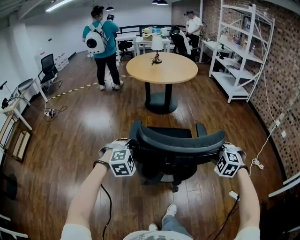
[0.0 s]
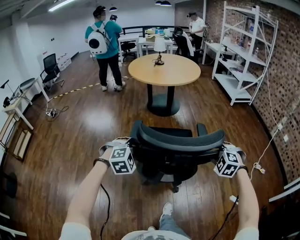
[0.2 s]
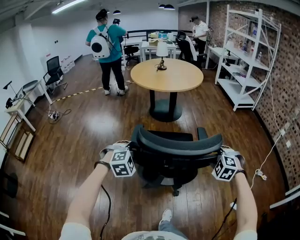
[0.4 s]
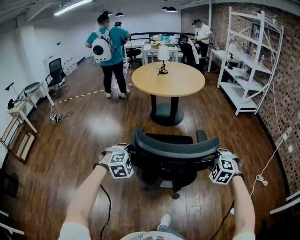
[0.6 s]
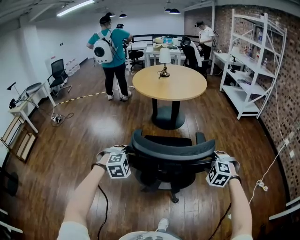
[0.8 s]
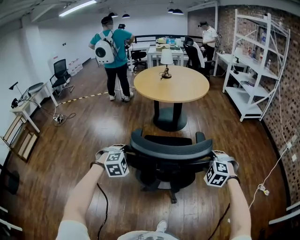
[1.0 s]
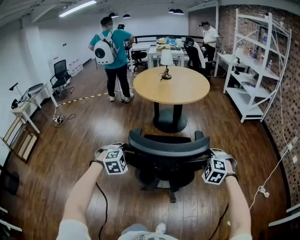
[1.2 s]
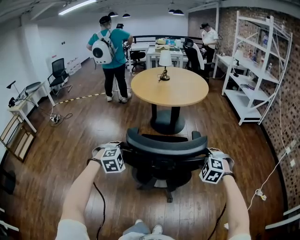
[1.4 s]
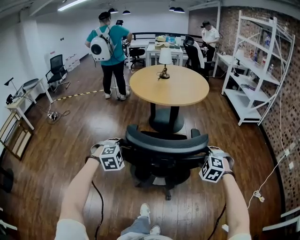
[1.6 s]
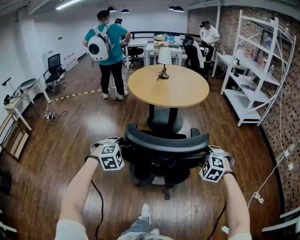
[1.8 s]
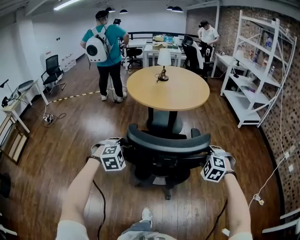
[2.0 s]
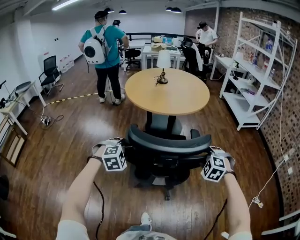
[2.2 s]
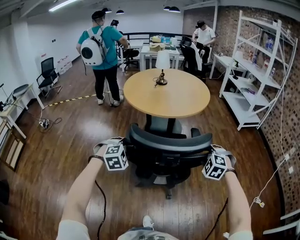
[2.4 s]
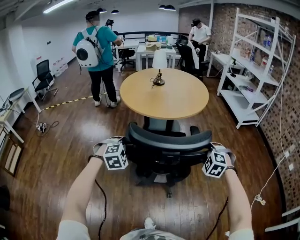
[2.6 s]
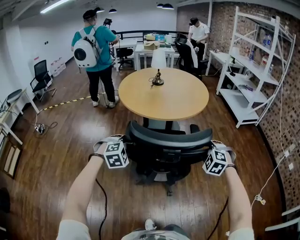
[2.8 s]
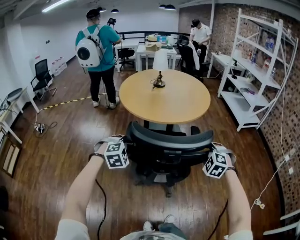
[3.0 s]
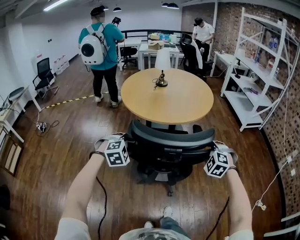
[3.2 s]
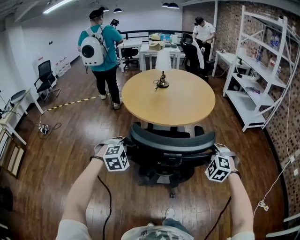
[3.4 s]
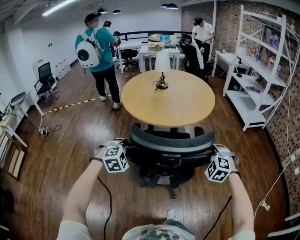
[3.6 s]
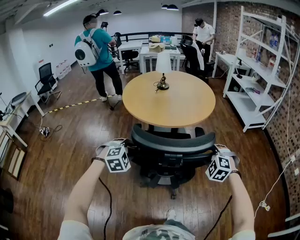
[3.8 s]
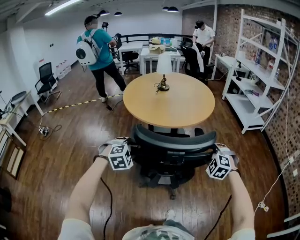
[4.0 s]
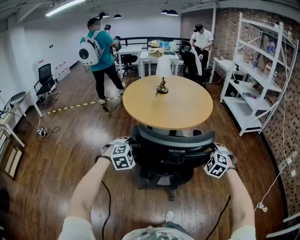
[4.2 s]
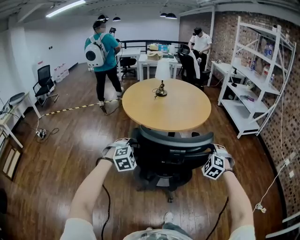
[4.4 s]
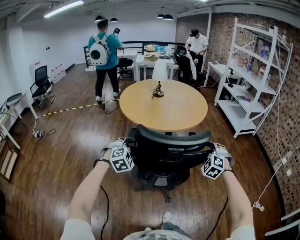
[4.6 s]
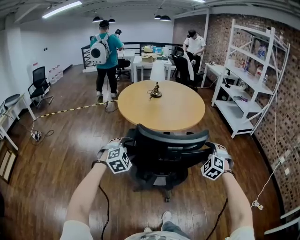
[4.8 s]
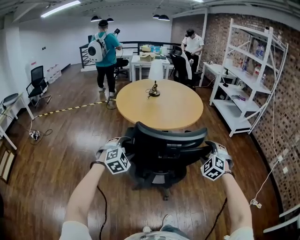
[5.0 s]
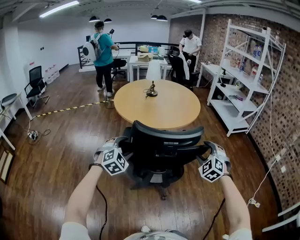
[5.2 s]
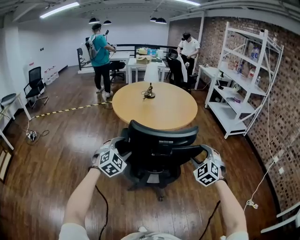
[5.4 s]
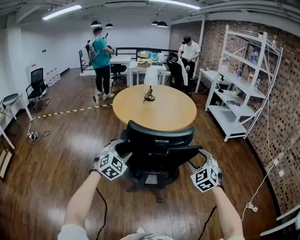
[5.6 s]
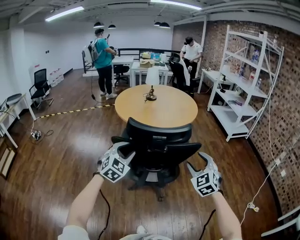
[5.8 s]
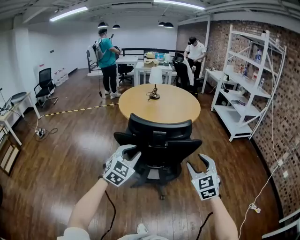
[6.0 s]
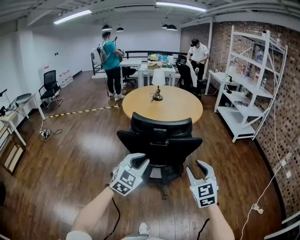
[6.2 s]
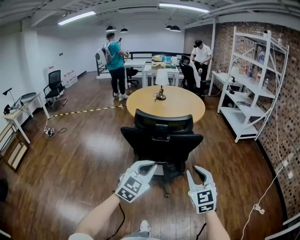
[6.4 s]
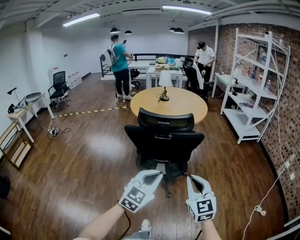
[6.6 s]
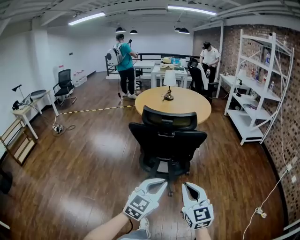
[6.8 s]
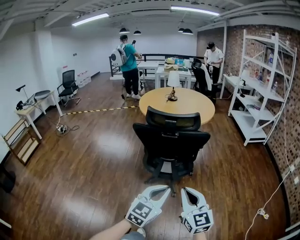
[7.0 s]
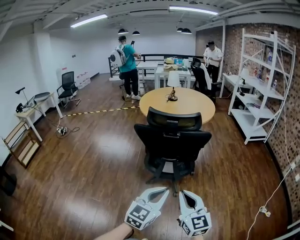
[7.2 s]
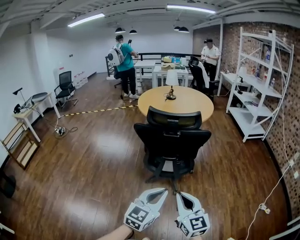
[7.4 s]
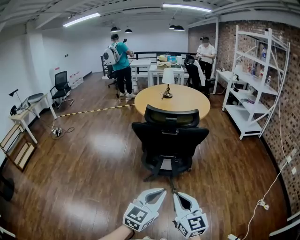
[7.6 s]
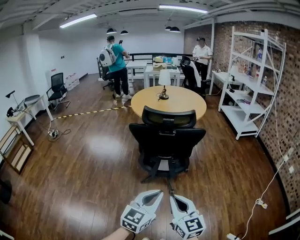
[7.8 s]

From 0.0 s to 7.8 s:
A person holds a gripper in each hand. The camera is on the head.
From 0.0 s to 1.6 s: The two grippers go roughly 25 cm forward.
From 1.6 s to 3.2 s: The two grippers go about 30 cm forward.
From 3.2 s to 4.6 s: The grippers stay close to where they were, moving slightly.
From 4.6 s to 6.2 s: The right gripper travels backward by roughly 25 cm, changes its angle by roughly 50 degrees, and closes. The left gripper goes about 25 cm backward, to the right and upward, turns by some 40 degrees, and closes up.
From 6.2 s to 7.8 s: The right gripper heads backward and to the left, covering roughly 25 cm, changes its angle by approximately 30 degrees, and closes, while the left gripper shifts about 25 cm backward, and turns by some 30 degrees.

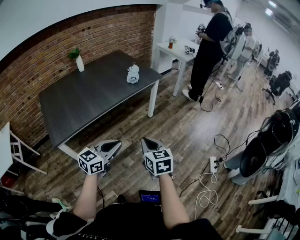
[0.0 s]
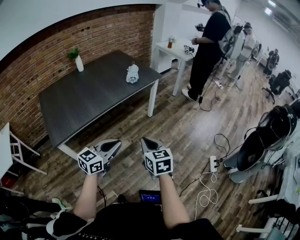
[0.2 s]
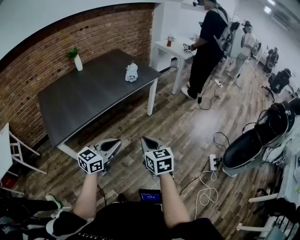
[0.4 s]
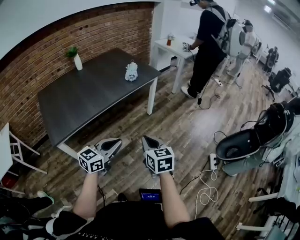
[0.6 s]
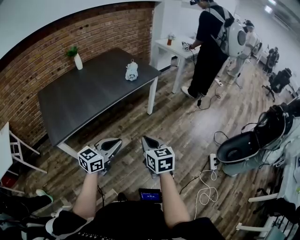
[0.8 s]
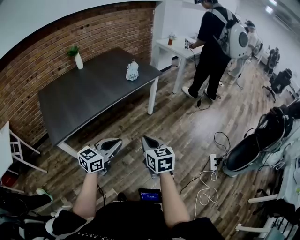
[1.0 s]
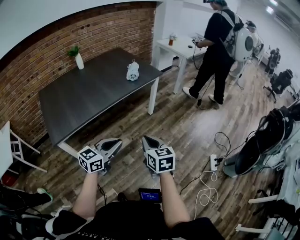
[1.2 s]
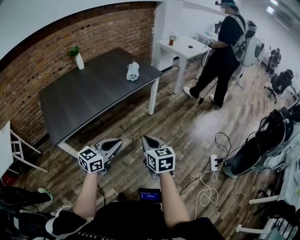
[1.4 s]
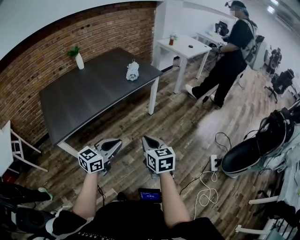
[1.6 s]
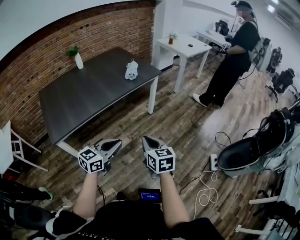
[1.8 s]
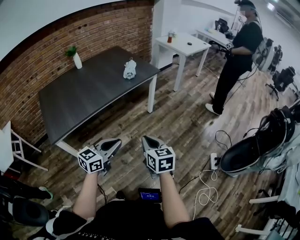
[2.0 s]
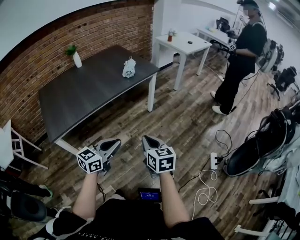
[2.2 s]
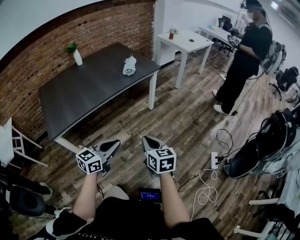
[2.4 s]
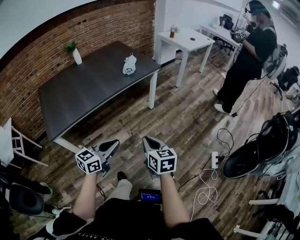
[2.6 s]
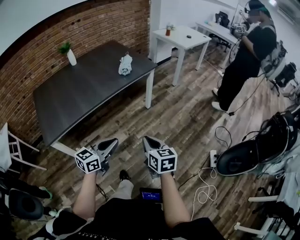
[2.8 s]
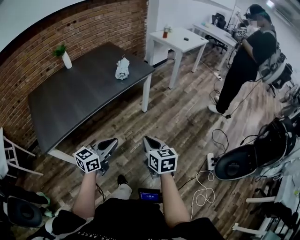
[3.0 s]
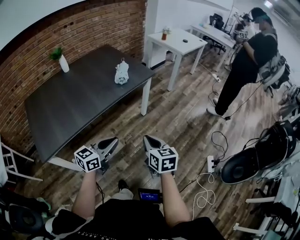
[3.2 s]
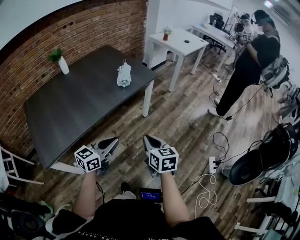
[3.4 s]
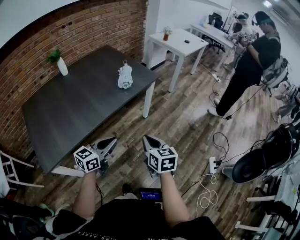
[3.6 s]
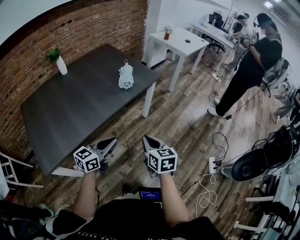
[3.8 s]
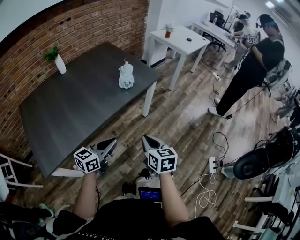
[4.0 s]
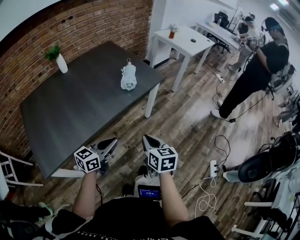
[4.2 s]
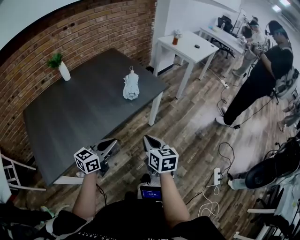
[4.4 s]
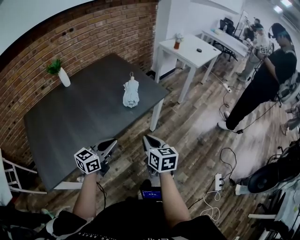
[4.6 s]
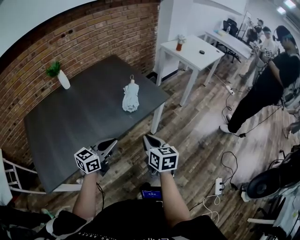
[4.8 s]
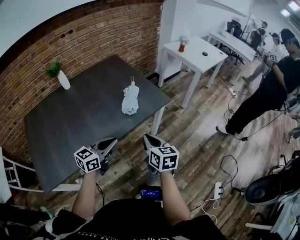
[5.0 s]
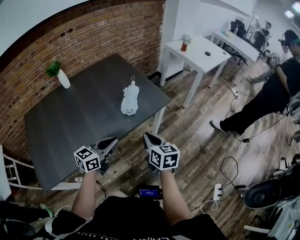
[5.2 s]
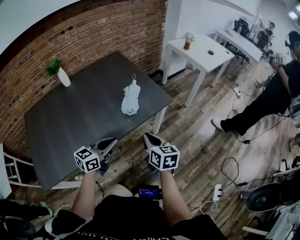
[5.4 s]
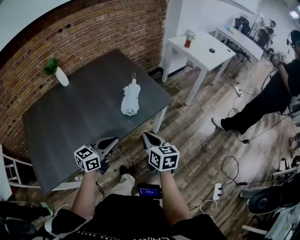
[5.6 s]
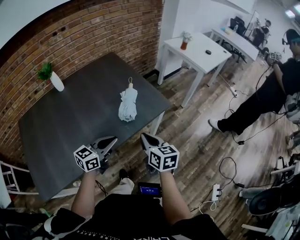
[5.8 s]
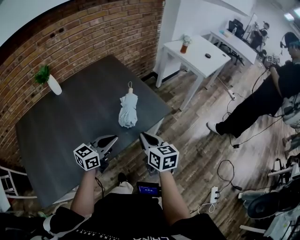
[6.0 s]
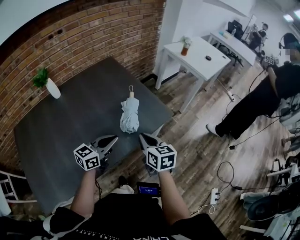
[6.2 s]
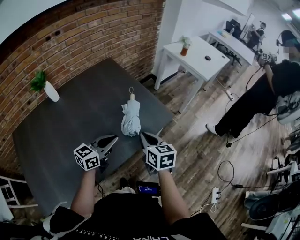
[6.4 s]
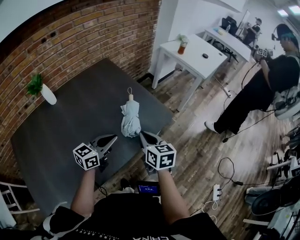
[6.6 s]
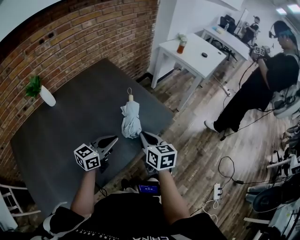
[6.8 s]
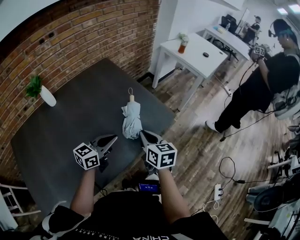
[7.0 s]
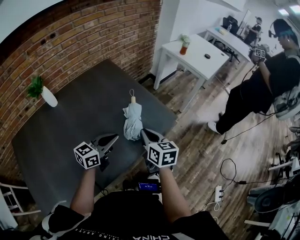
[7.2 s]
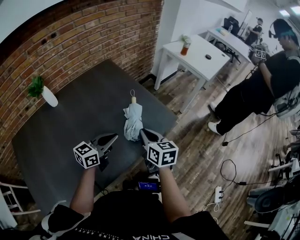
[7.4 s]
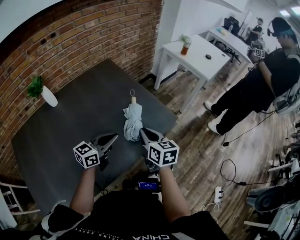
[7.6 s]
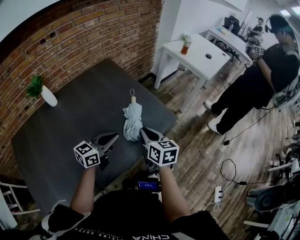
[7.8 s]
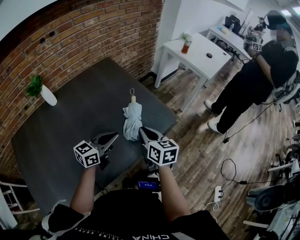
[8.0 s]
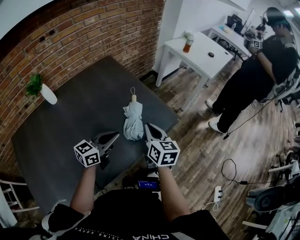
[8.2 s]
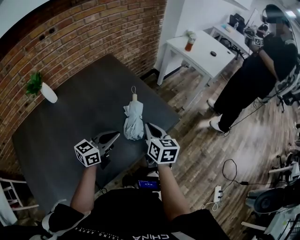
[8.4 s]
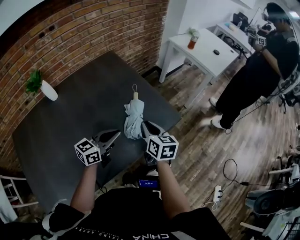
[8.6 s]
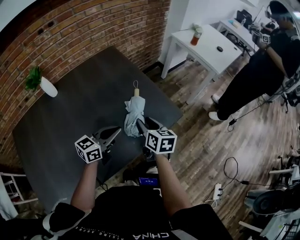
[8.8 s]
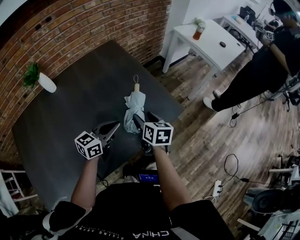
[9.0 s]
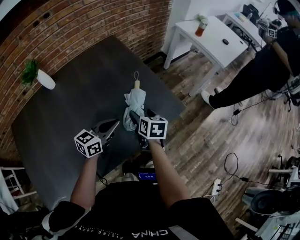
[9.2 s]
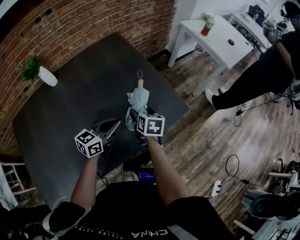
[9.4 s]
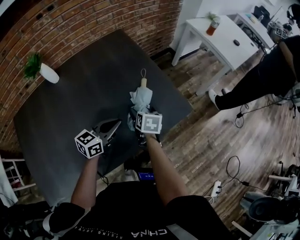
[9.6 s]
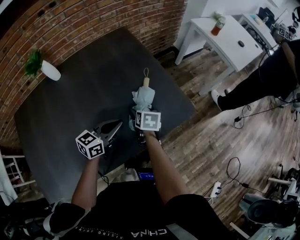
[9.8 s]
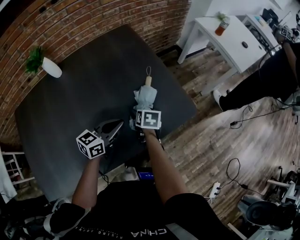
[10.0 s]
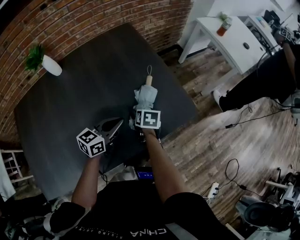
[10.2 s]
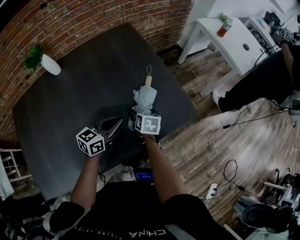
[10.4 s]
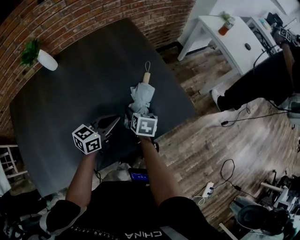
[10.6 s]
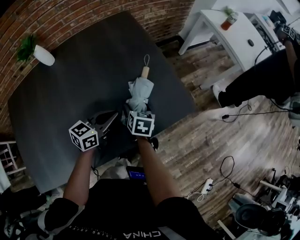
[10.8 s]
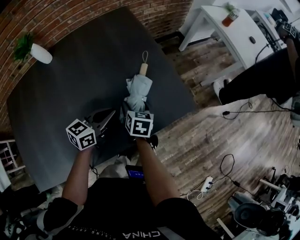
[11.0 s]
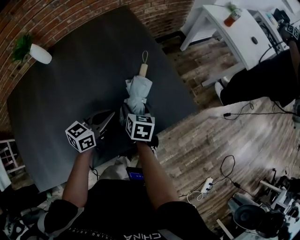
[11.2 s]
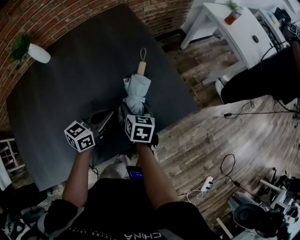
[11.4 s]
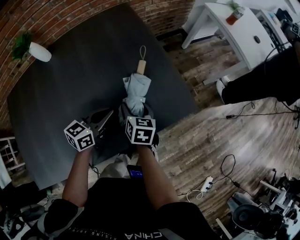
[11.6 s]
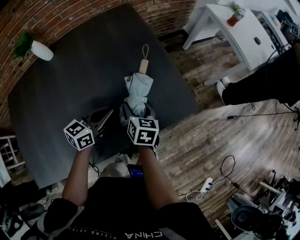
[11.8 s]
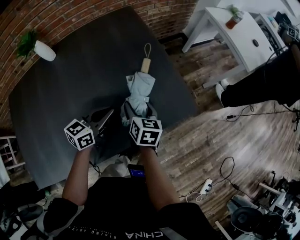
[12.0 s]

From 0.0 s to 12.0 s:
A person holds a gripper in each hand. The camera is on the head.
From 0.0 s to 1.6 s: The grippers make only small movements.
From 1.6 s to 3.0 s: The two grippers go approximately 10 cm forward.
From 3.0 s to 4.4 s: The grippers both shift forward and to the left by roughly 25 cm.
From 4.4 s to 6.0 s: The grippers both shift forward by approximately 25 cm.
From 6.0 s to 7.6 s: The two grippers go roughly 10 cm forward and to the left.
From 7.6 s to 9.0 s: The left gripper ends up about 5 cm from where it was, while the right gripper is displaced downward and forward by some 10 cm, and opens.
From 9.0 s to 10.4 s: The left gripper ends up approximately 5 cm from where it was, while the right gripper heads downward and to the left, covering some 15 cm, and opens its fingers.
From 10.4 s to 12.0 s: The right gripper heads upward, covering approximately 5 cm.

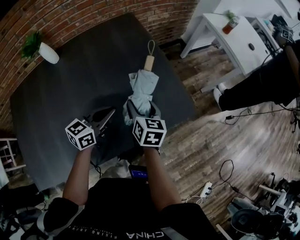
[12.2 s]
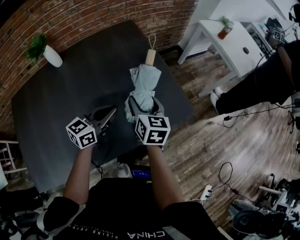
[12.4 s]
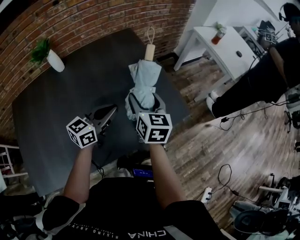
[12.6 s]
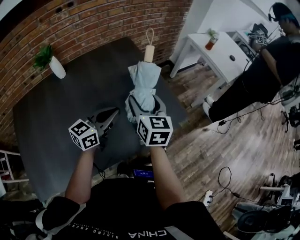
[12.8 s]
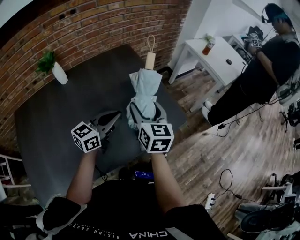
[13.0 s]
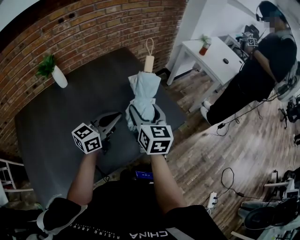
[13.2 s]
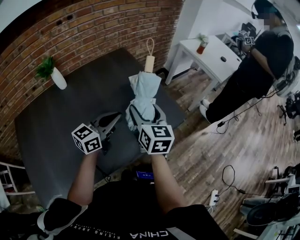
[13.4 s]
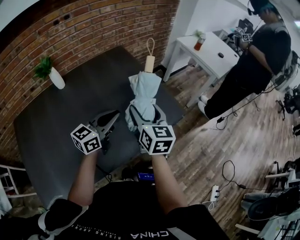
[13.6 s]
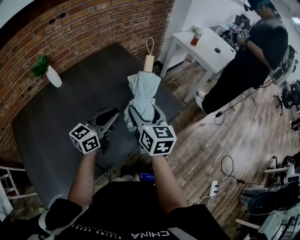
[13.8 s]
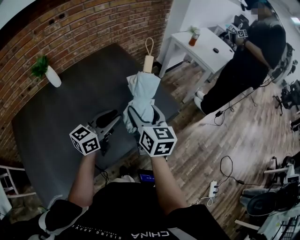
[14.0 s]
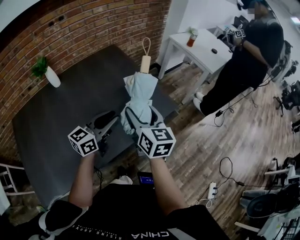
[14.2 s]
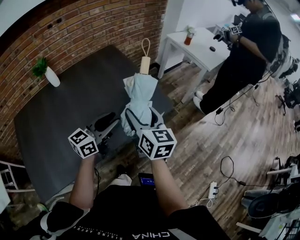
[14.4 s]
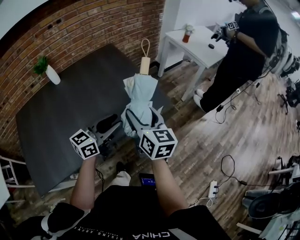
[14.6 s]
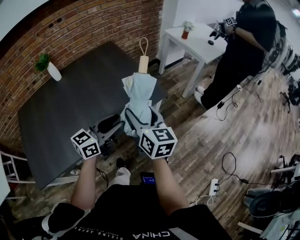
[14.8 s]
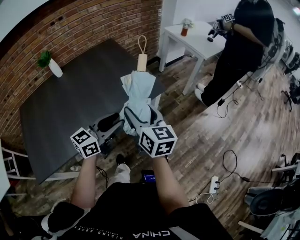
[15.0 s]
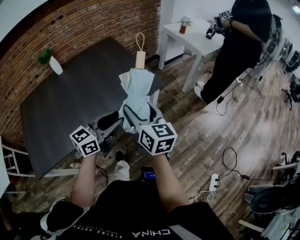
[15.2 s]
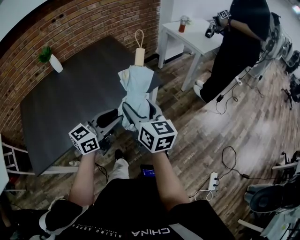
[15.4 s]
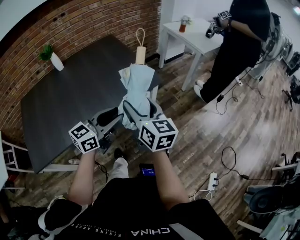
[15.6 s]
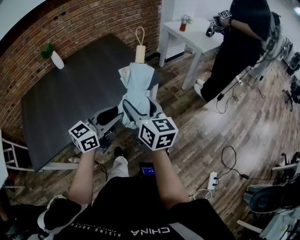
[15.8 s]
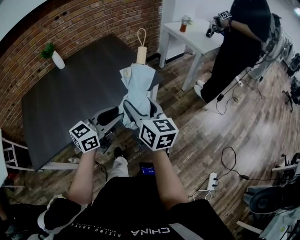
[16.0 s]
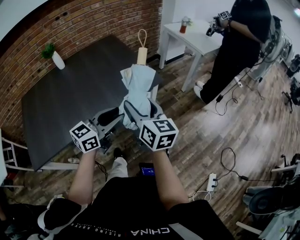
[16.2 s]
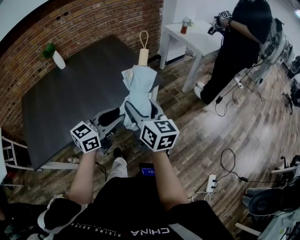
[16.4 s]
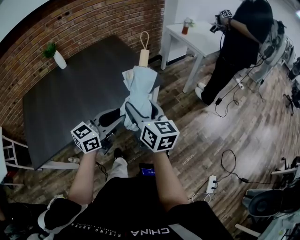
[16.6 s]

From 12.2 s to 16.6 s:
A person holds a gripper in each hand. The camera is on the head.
From 12.2 s to 13.6 s: Both grippers move upward and backward, some 15 cm. The right gripper swivels approximately 20 degrees.
From 13.6 s to 15.2 s: Both grippers travel together to the right and backward, about 30 cm. The left gripper opens.
From 15.2 s to 16.6 s: The grippers stay close to where they were, moving slightly.
